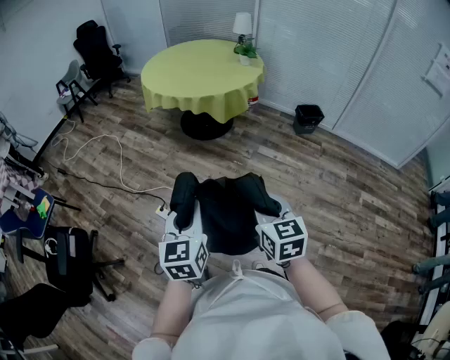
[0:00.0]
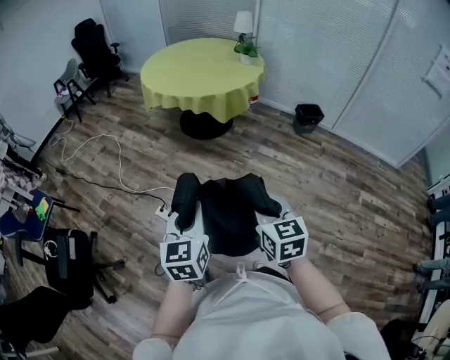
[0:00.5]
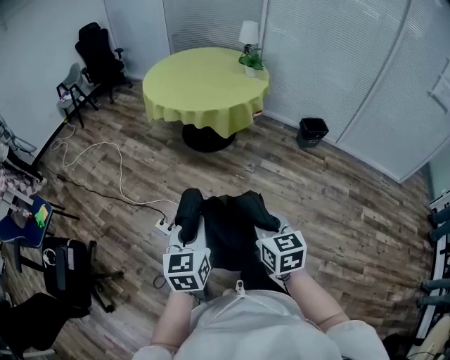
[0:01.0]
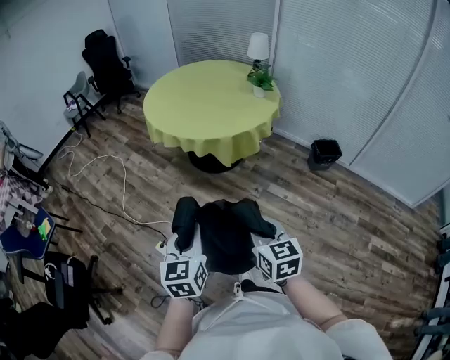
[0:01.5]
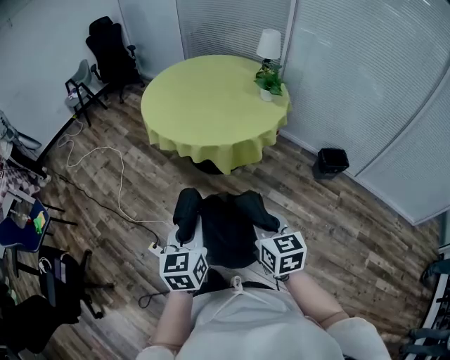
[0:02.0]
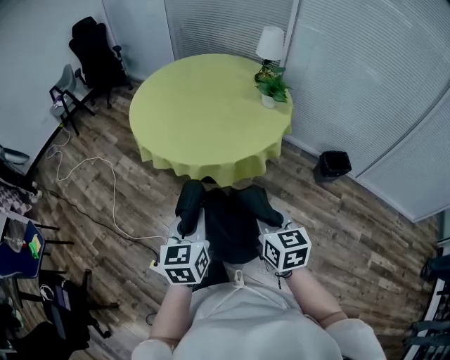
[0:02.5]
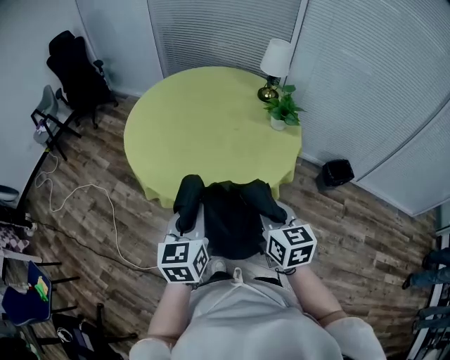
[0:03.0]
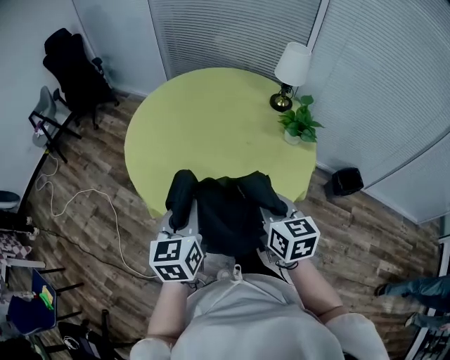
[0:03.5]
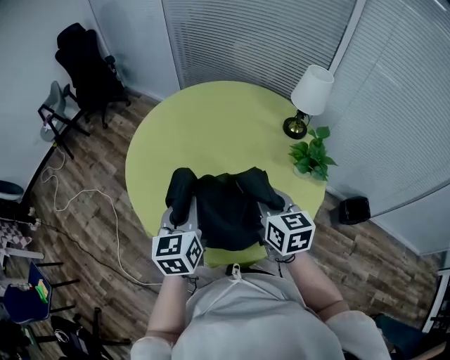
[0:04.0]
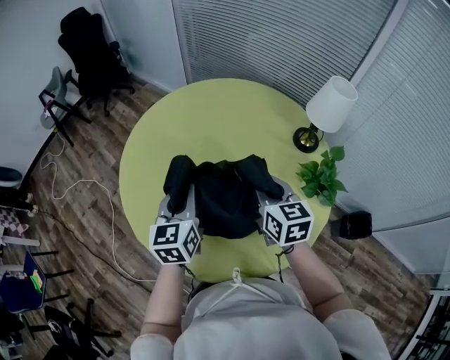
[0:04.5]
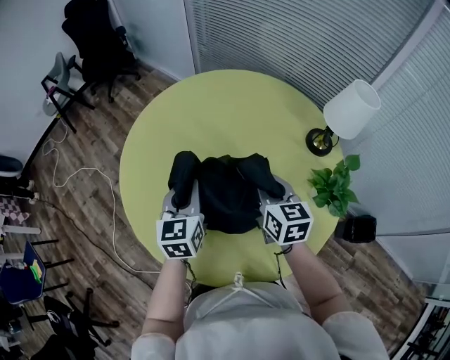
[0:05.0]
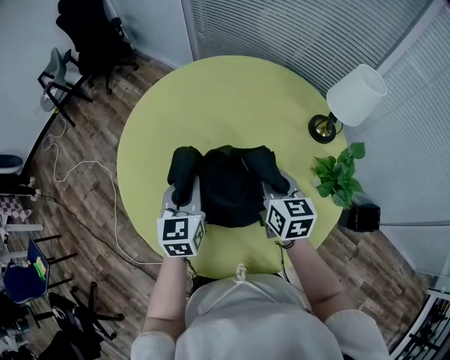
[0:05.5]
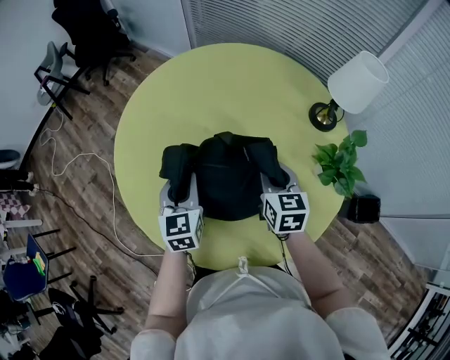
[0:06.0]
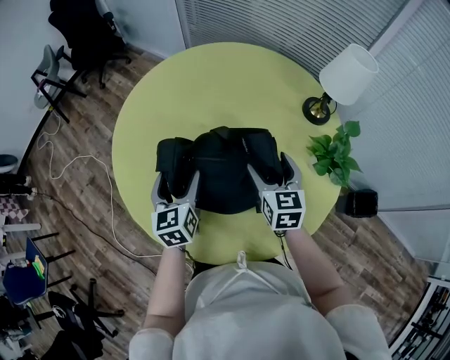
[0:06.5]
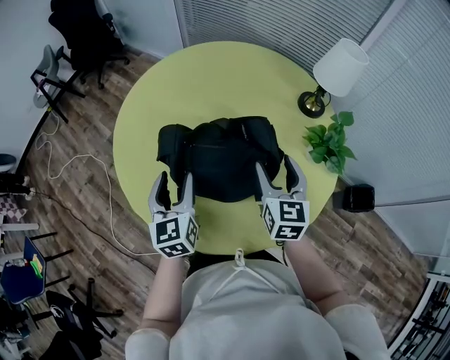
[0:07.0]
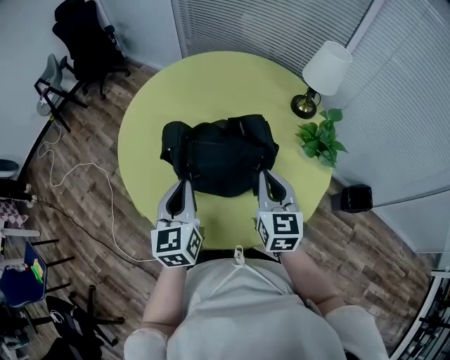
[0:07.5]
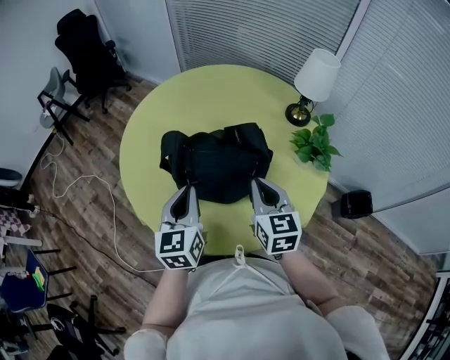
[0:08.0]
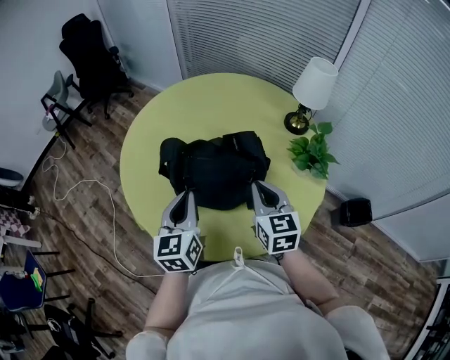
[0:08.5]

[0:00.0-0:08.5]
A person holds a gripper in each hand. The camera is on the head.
0:00.0 to 0:02.0: Both grippers are carried forward, some 40 cm.
0:02.0 to 0:04.0: The pair of grippers is taken forward, approximately 70 cm.
0:04.0 to 0:06.5: The right gripper shifts roughly 20 cm forward and downward, and opens. The left gripper is displaced downward and forward by some 20 cm, and opens.
0:06.5 to 0:08.5: The two grippers go some 15 cm backward and upward. The right gripper closes its fingers; the left gripper closes its fingers.

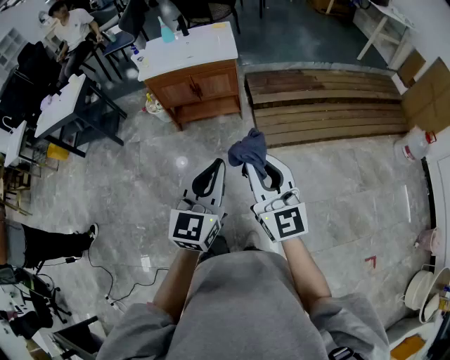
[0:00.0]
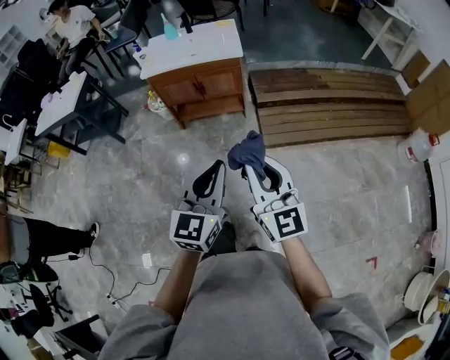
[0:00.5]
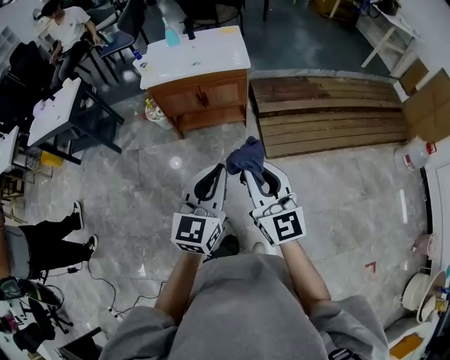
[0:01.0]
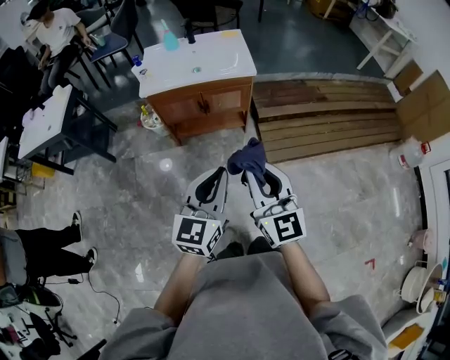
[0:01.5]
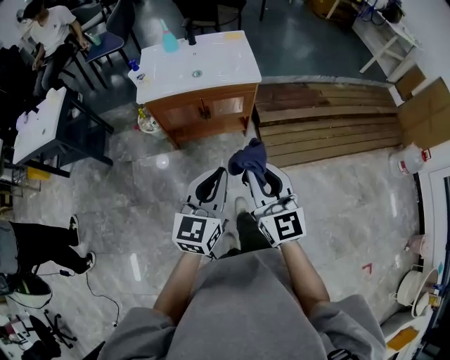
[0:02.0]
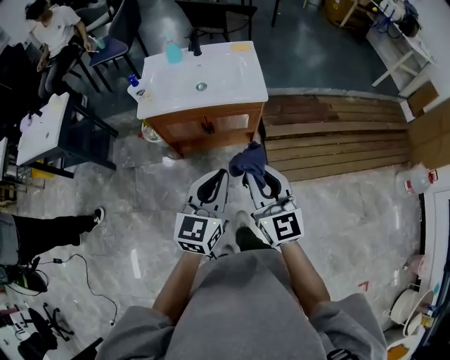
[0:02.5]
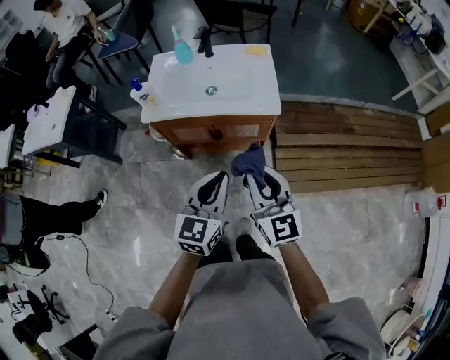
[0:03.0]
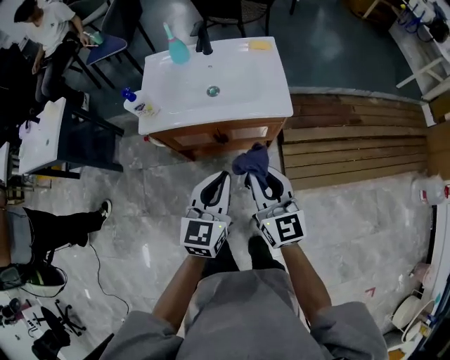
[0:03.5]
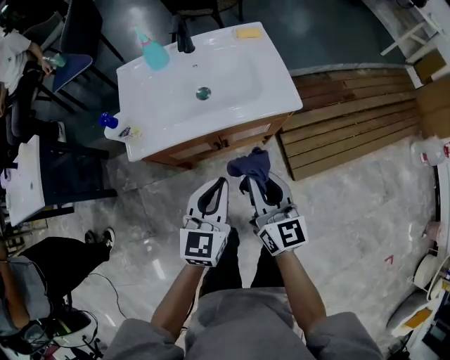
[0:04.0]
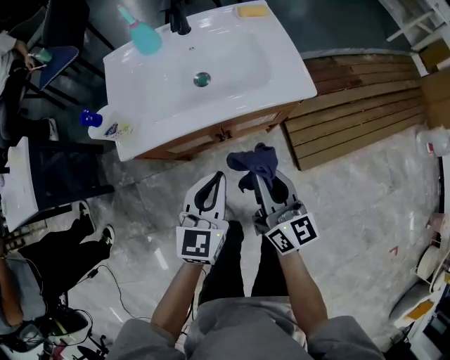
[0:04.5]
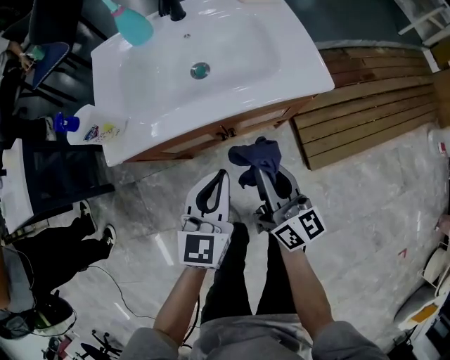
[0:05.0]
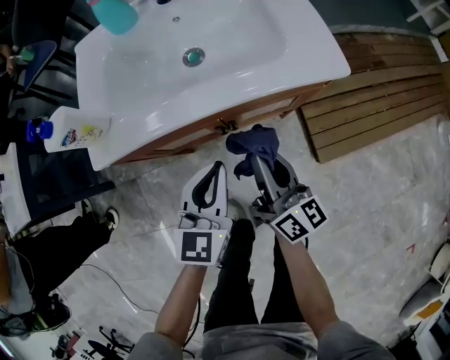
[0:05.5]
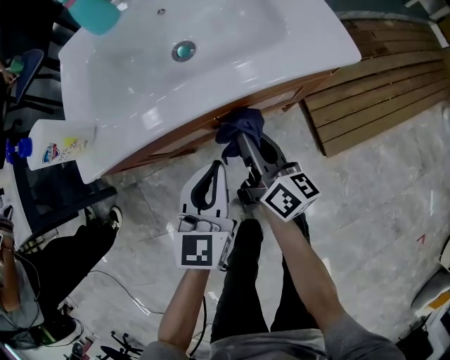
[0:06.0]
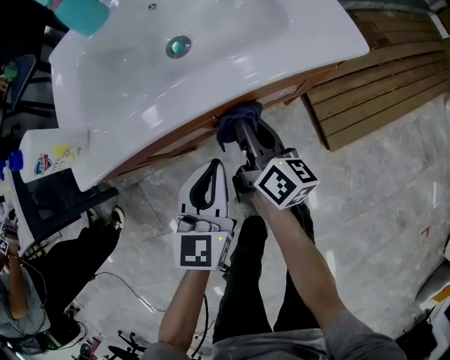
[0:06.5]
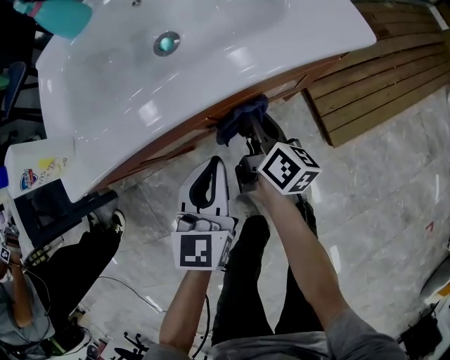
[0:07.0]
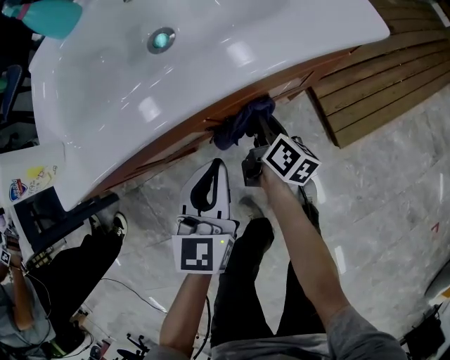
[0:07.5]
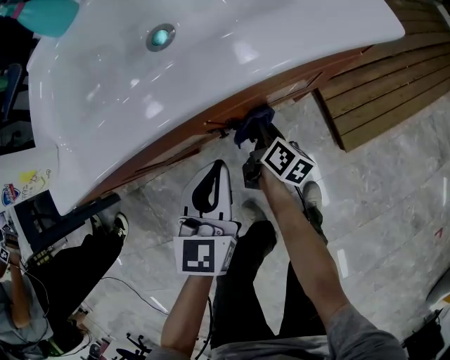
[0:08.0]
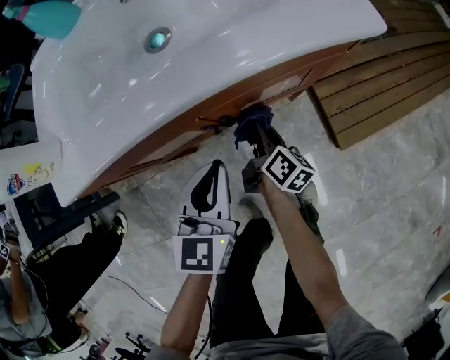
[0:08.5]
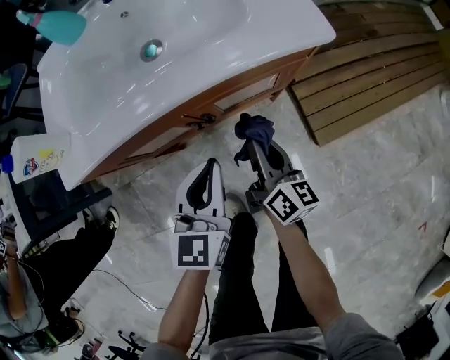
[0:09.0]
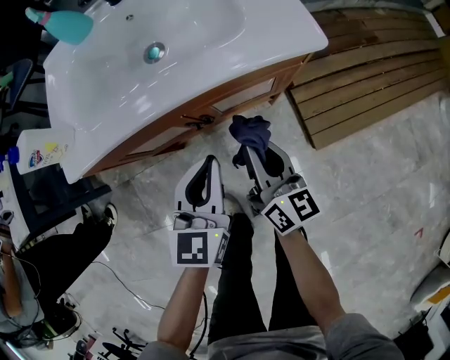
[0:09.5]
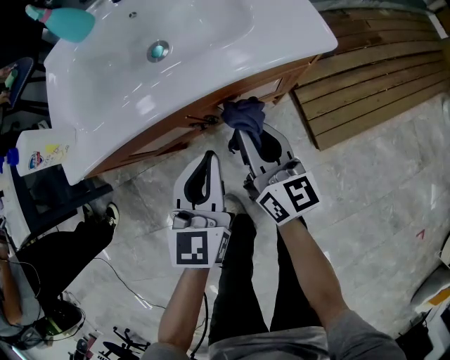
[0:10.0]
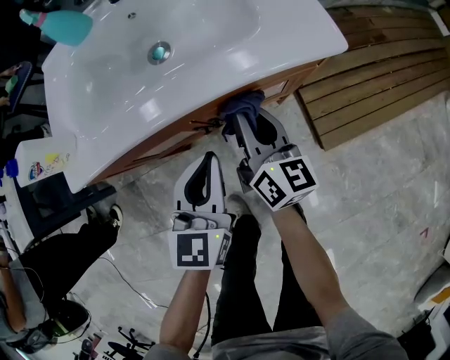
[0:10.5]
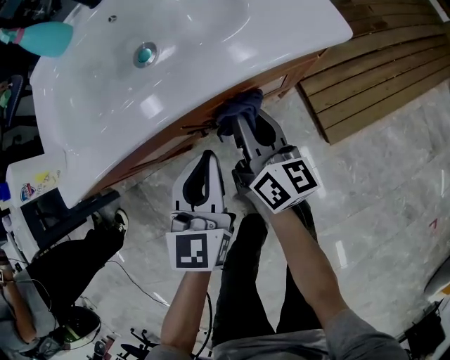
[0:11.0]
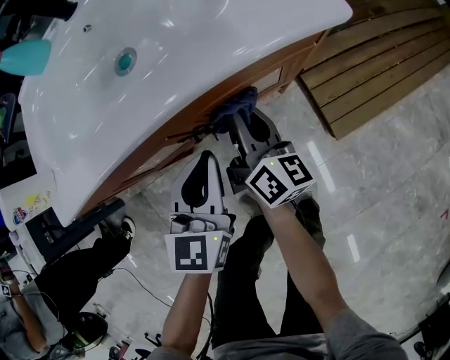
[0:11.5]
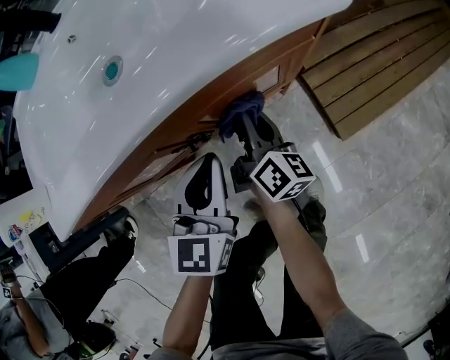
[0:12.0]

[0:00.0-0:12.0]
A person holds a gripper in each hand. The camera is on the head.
0:00.0 to 0:02.0: Both grippers move forward and to the left, some 30 cm.
0:02.0 to 0:04.0: The grippers both shift forward and downward by roughly 35 cm. The right gripper rotates about 20 degrees.
0:04.0 to 0:06.0: The left gripper moves downward, approximately 20 cm. The right gripper travels downward and forward by some 25 cm, and swivels some 40 degrees.
0:06.0 to 0:08.0: The left gripper shifts roughly 10 cm downward. The right gripper moves downward, about 25 cm, and turns by roughly 30 degrees.
0:08.0 to 0:10.0: The right gripper goes roughly 25 cm upward, and changes its angle by approximately 40 degrees. Meanwhile the left gripper shifts some 10 cm upward and to the right.
0:10.0 to 0:12.0: The left gripper goes some 10 cm downward; the right gripper is displaced downward by approximately 15 cm, and swivels approximately 30 degrees.

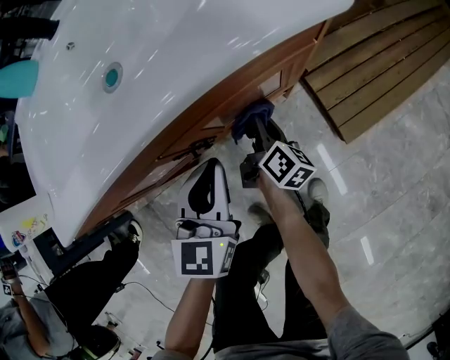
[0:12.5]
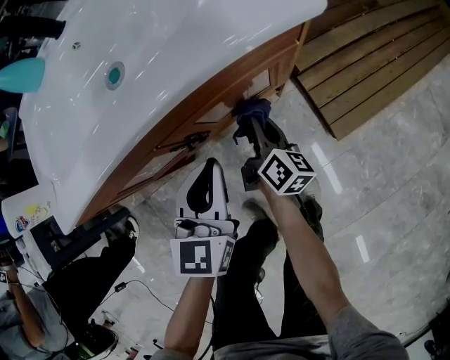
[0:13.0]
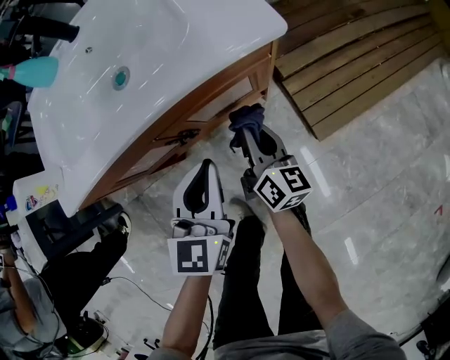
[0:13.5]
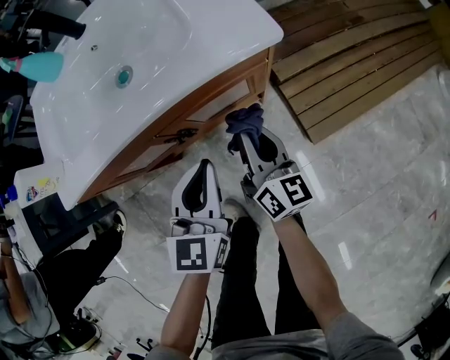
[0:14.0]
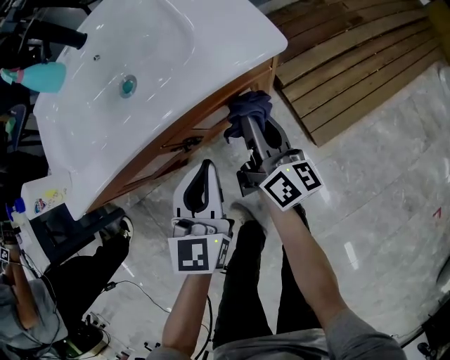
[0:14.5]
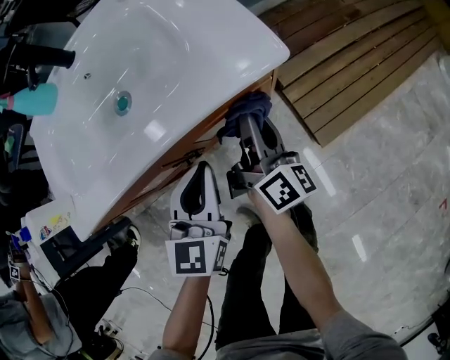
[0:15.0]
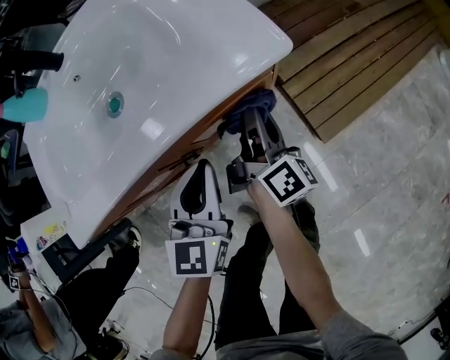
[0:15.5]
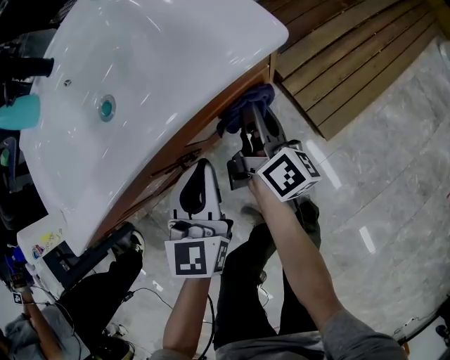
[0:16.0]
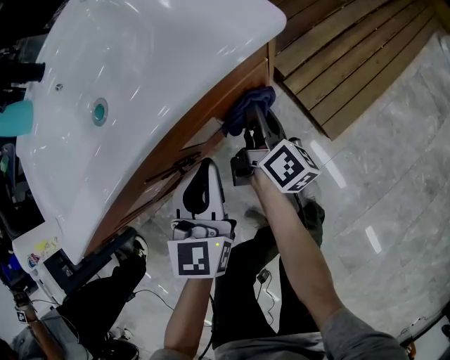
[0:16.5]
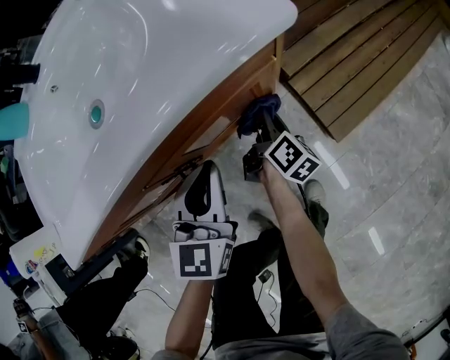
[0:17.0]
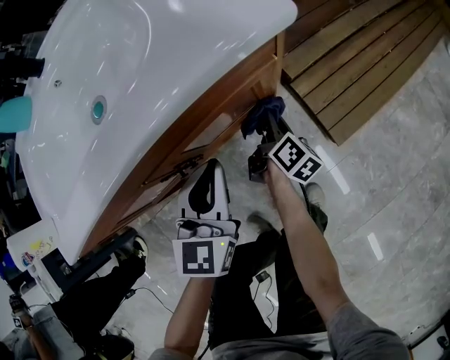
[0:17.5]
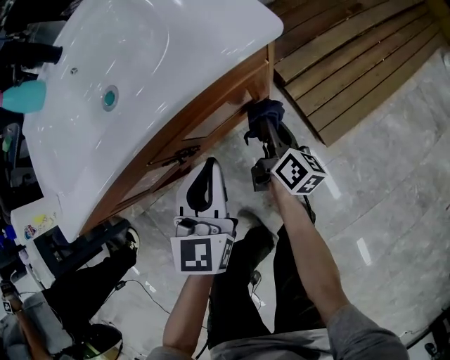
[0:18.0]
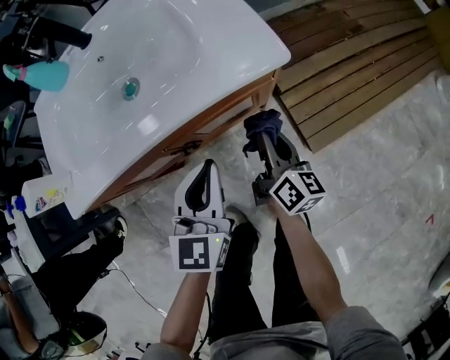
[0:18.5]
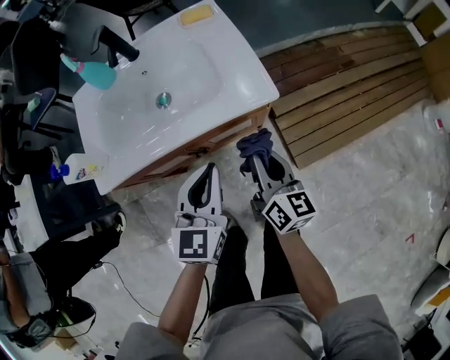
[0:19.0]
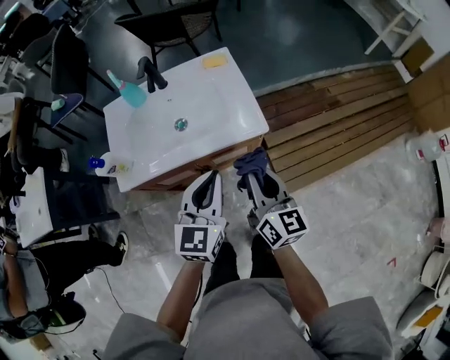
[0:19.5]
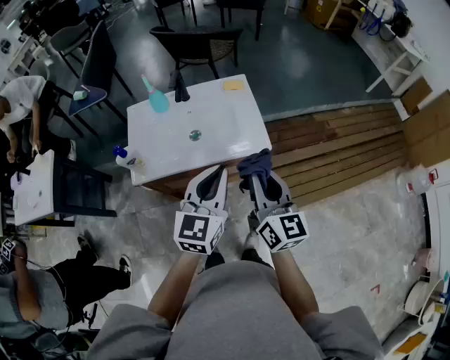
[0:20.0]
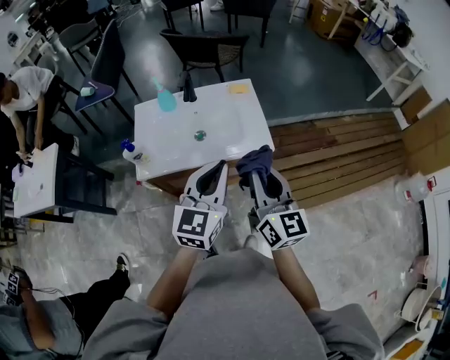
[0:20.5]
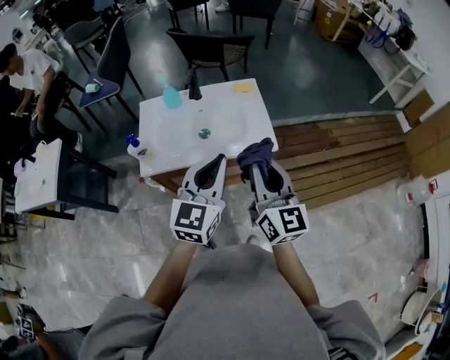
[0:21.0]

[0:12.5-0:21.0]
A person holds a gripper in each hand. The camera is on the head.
0:12.5 to 0:14.5: The left gripper goes some 10 cm upward; the right gripper moves upward, some 25 cm, and swivels roughly 20 degrees.
0:14.5 to 0:16.5: The right gripper is displaced downward by approximately 15 cm, and changes its angle by some 20 degrees; the left gripper heads downward, covering approximately 10 cm.
0:16.5 to 0:19.0: The two grippers go about 25 cm upward. The right gripper swivels approximately 40 degrees.
0:19.0 to 0:21.0: The grippers both shift upward by some 30 cm. The right gripper changes its angle by about 30 degrees.
